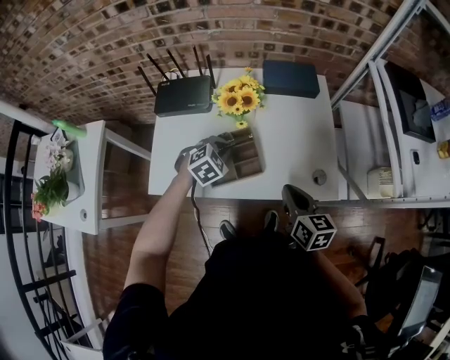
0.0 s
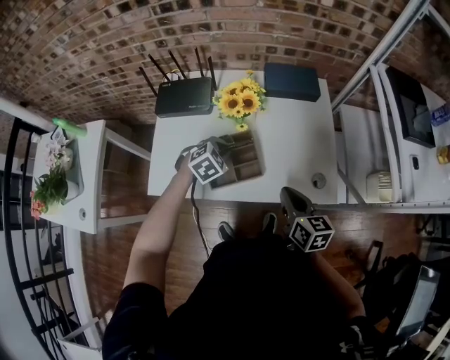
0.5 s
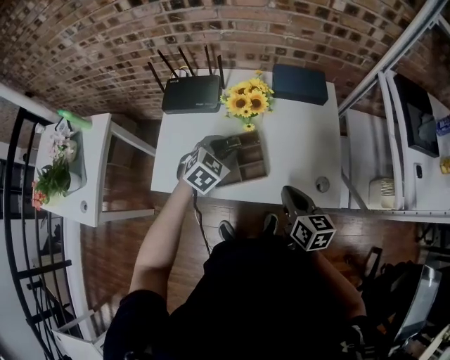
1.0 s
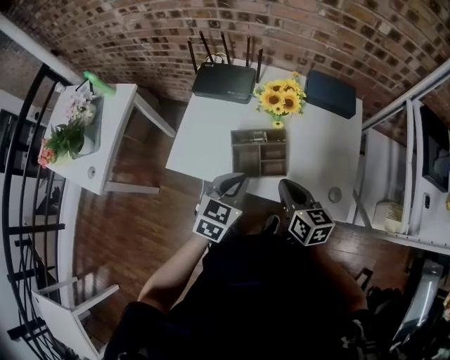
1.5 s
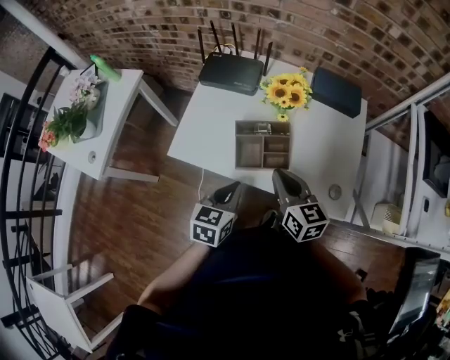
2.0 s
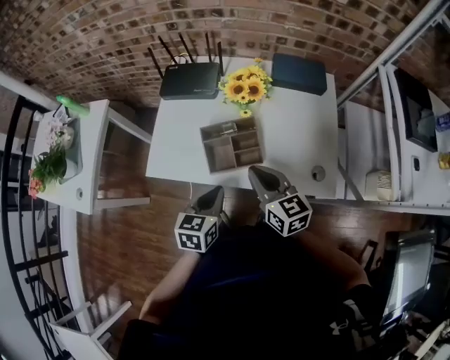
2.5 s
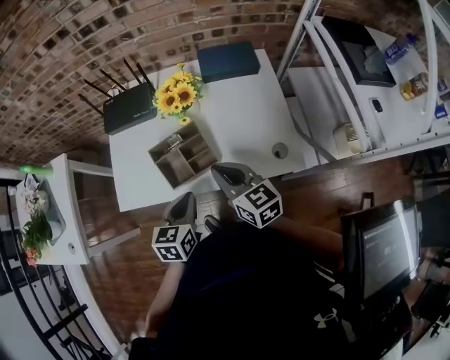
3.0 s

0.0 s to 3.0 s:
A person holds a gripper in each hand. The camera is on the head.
0.0 to 1.5 s: The right gripper shifts some 10 cm to the left, while the left gripper is displaced backward and upward by approximately 15 cm, swivels some 50 degrees, and opens, then closes once more.
1.5 to 3.0 s: The left gripper changes place by approximately 5 cm.

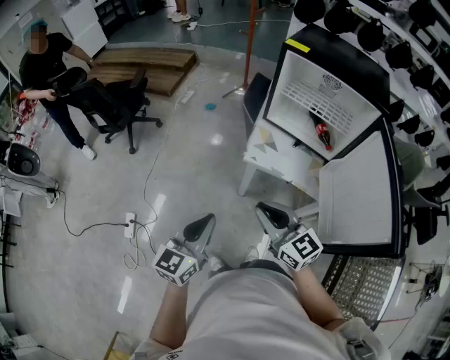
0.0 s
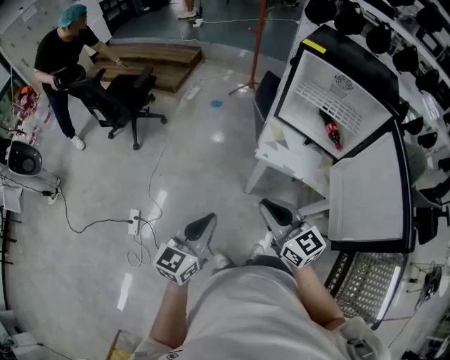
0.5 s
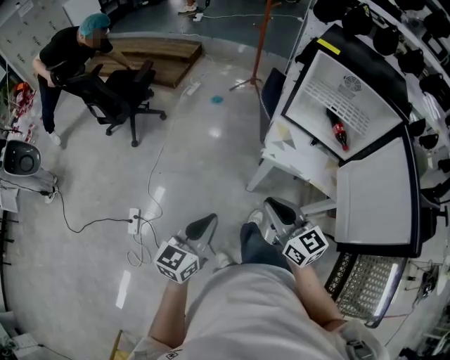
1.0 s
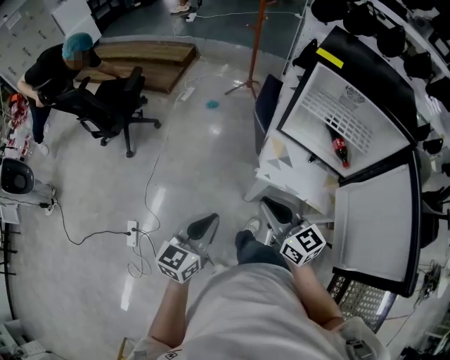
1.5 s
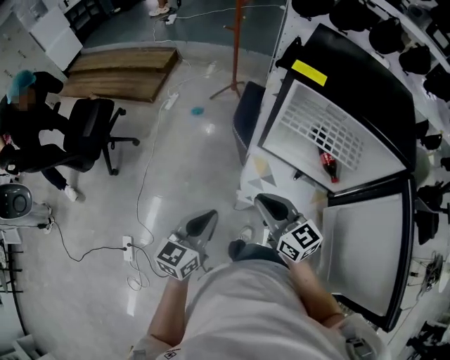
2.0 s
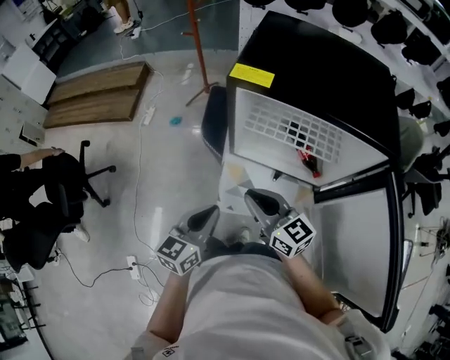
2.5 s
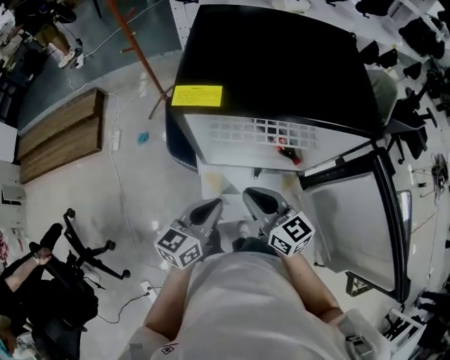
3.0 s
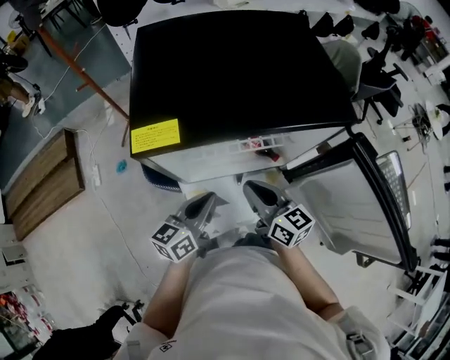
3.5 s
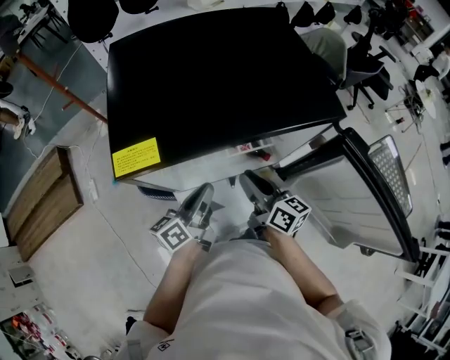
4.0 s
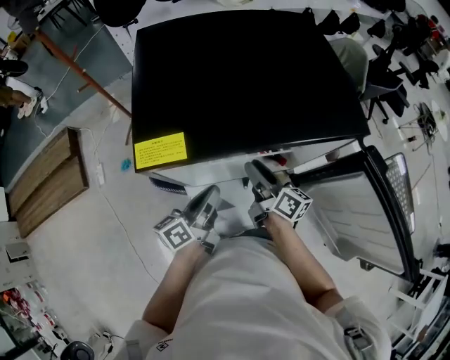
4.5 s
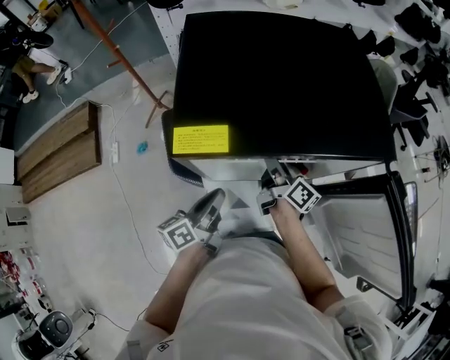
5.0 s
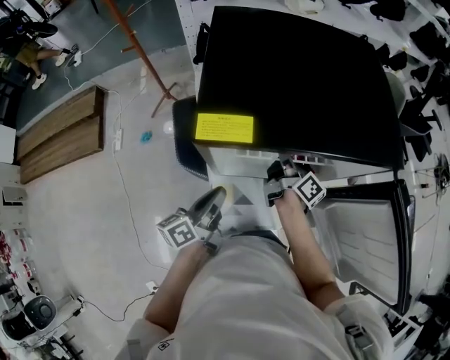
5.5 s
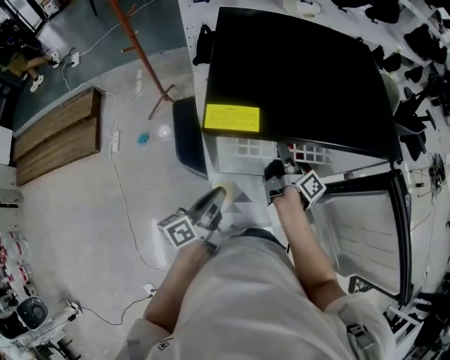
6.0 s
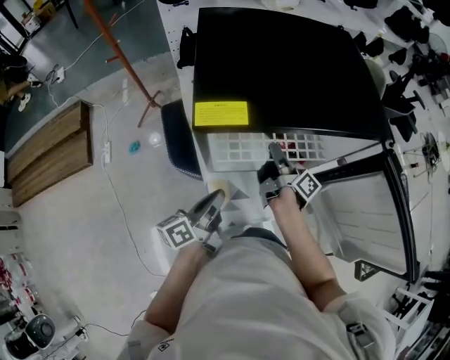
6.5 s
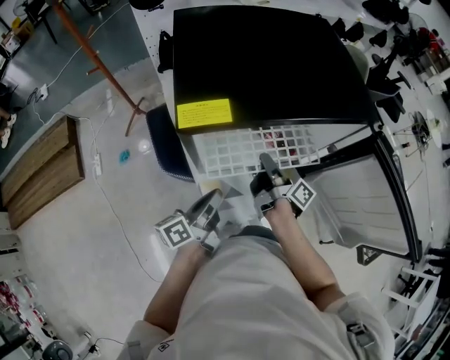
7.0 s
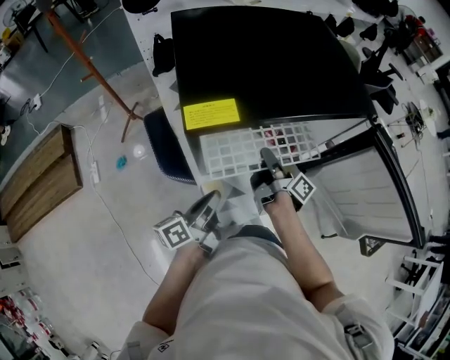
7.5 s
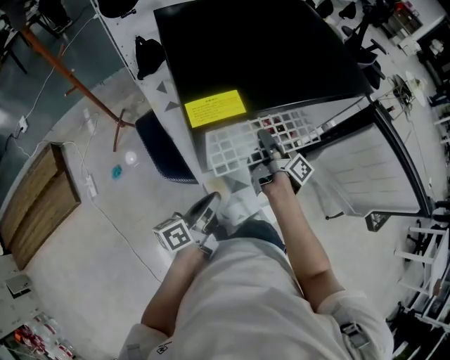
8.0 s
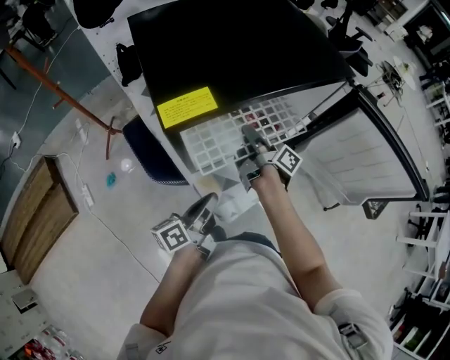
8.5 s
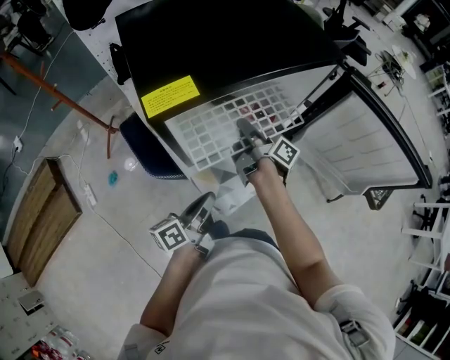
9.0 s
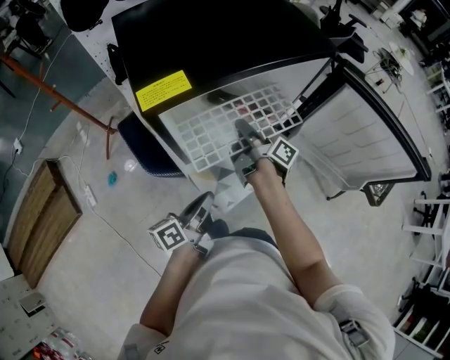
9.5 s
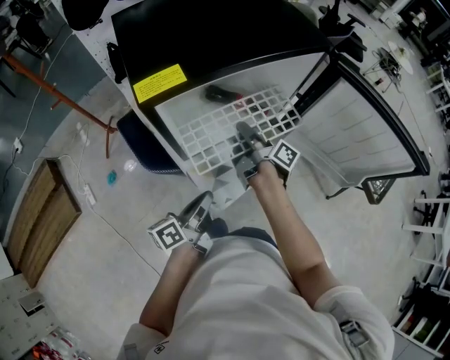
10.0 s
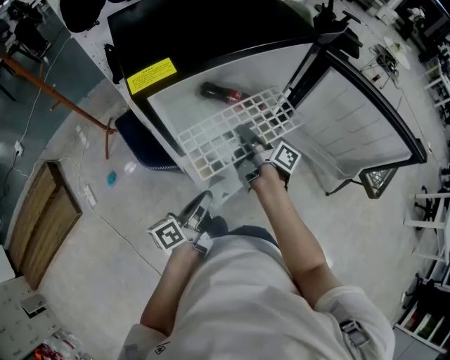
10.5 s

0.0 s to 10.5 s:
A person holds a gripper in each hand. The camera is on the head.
0.0 to 2.0 s: Both grippers move forward, about 25 cm.
2.0 to 4.0 s: The right gripper moves approximately 30 cm, and swivels some 60 degrees. The left gripper moves roughly 35 cm, and turns by about 50 degrees.
4.0 to 6.5 s: The left gripper heads to the left and backward, covering about 10 cm, while the right gripper moves forward, roughly 5 cm, rotates around the line of its fingers by approximately 40 degrees, clockwise from behind, and opens and closes again.
6.5 to 8.5 s: The left gripper turns by roughly 20 degrees.
8.5 to 10.5 s: The grippers both shift backward by about 5 cm.

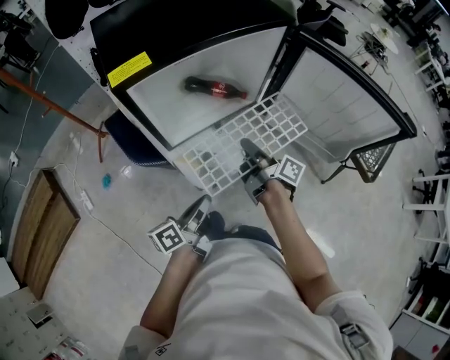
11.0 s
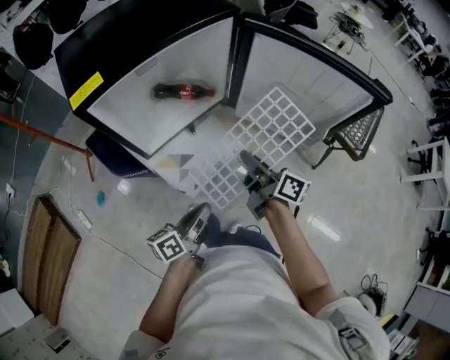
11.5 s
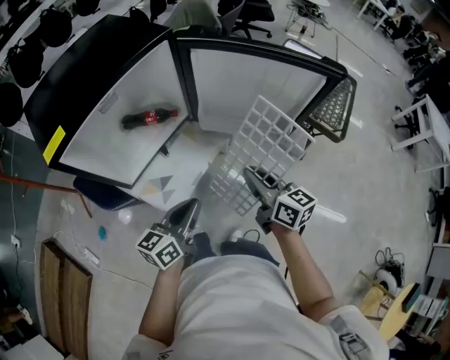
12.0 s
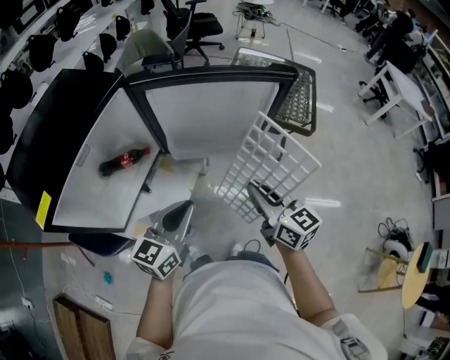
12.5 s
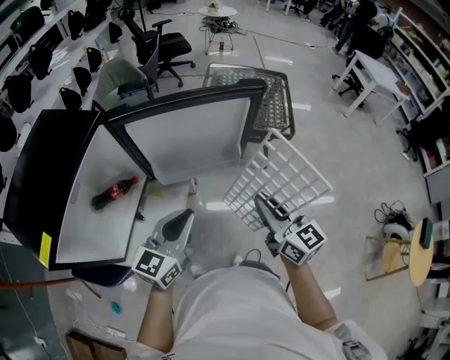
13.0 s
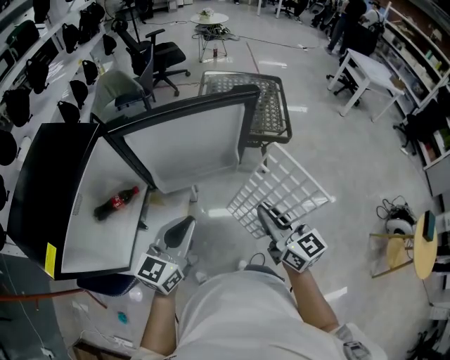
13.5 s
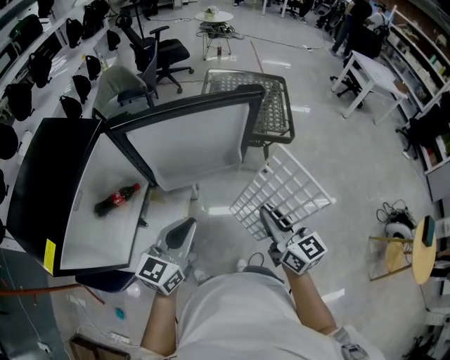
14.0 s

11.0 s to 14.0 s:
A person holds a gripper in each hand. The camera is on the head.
11.0 to 12.5 s: The right gripper ends up about 30 cm from where it was, and rolls counterclockwise, seen from behind, by some 60 degrees. The left gripper moves roughly 25 cm, and twists about 60 degrees clockwise, seen from behind.
12.5 to 14.0 s: The right gripper heads to the right, covering some 5 cm.

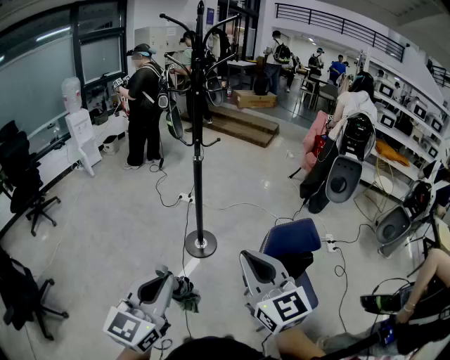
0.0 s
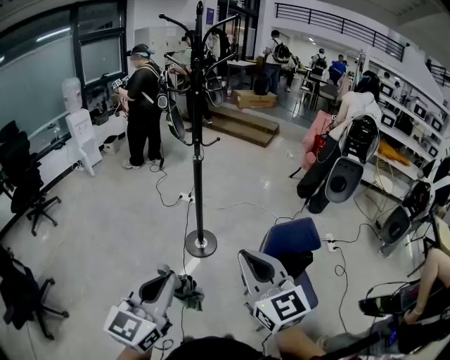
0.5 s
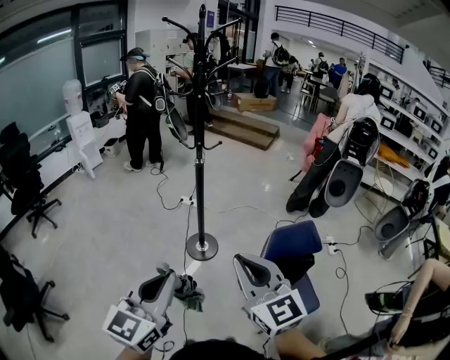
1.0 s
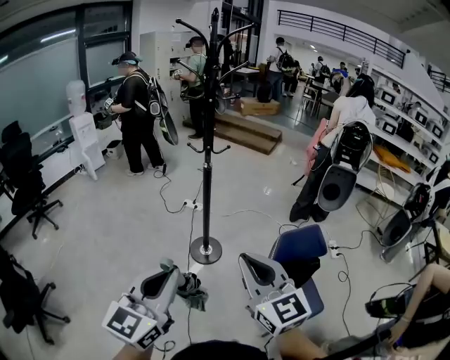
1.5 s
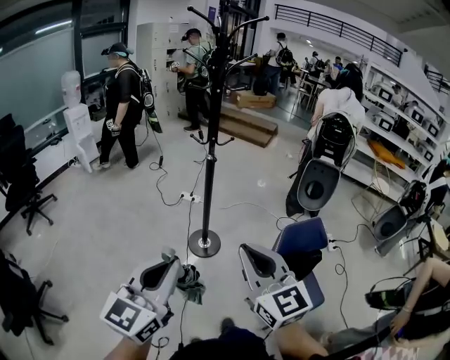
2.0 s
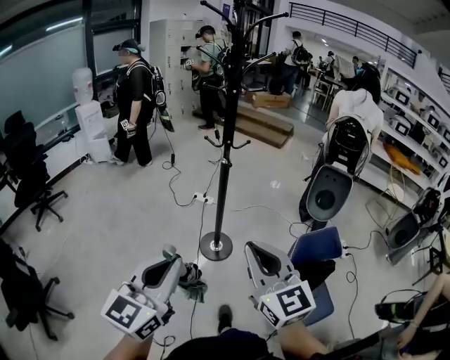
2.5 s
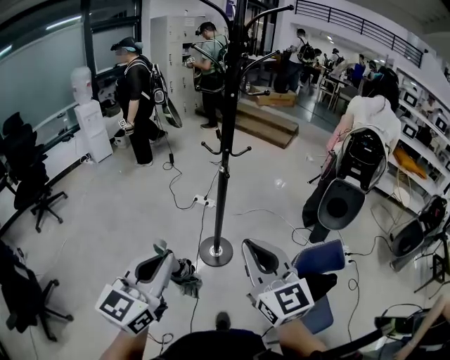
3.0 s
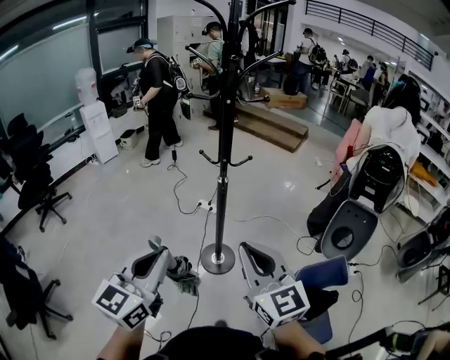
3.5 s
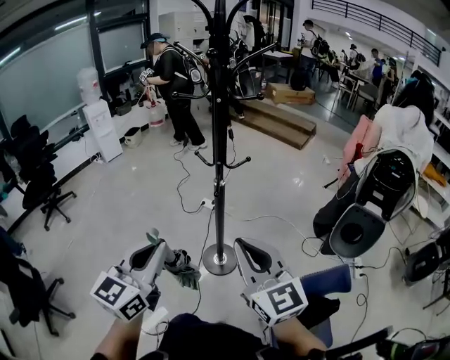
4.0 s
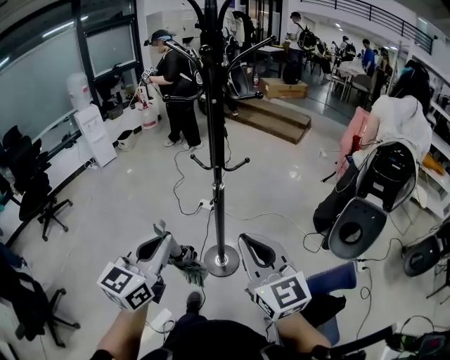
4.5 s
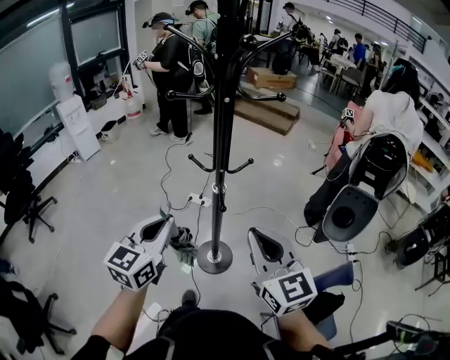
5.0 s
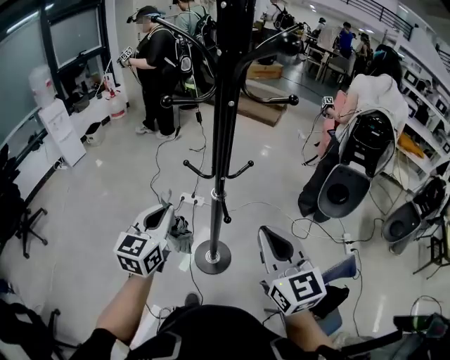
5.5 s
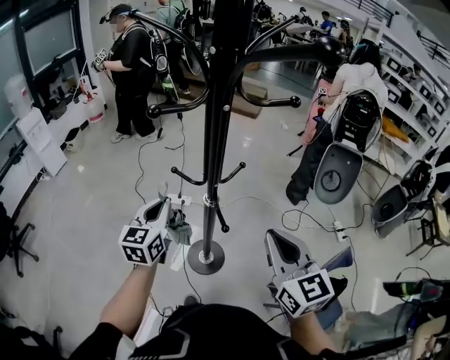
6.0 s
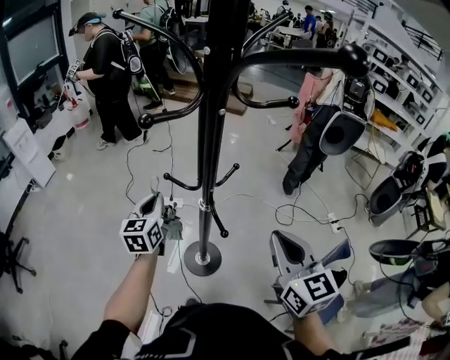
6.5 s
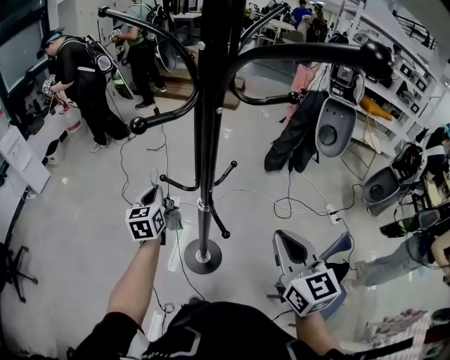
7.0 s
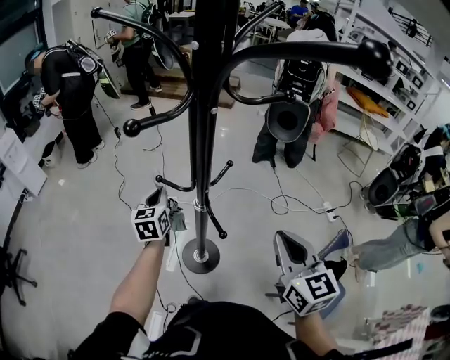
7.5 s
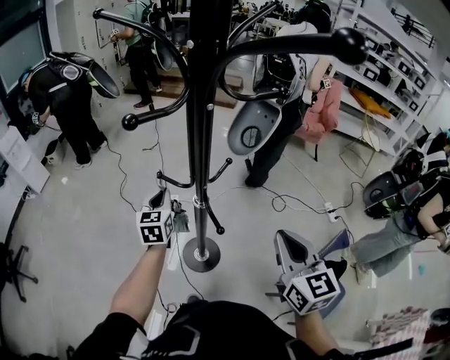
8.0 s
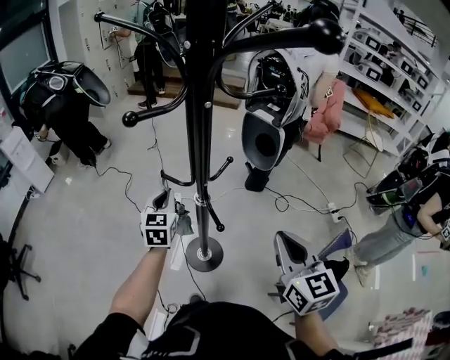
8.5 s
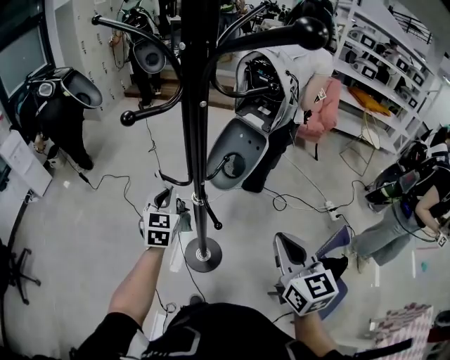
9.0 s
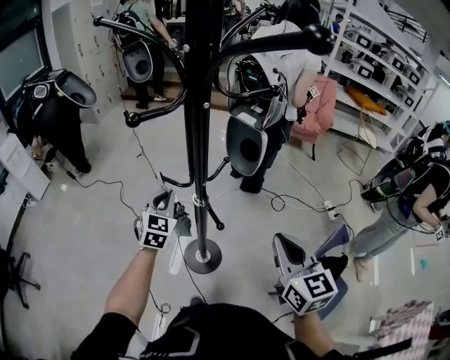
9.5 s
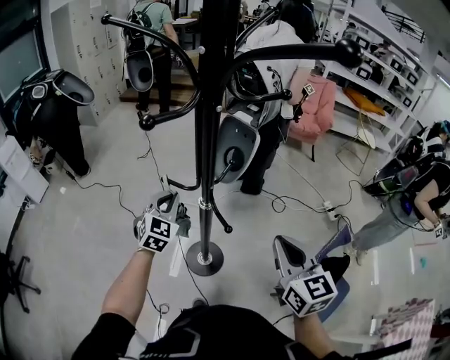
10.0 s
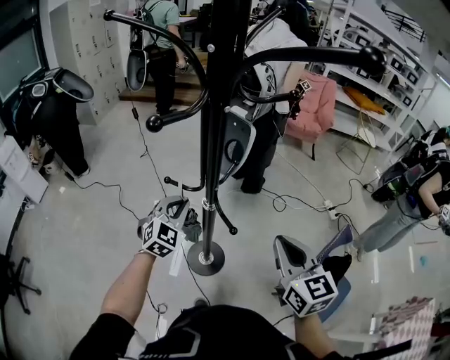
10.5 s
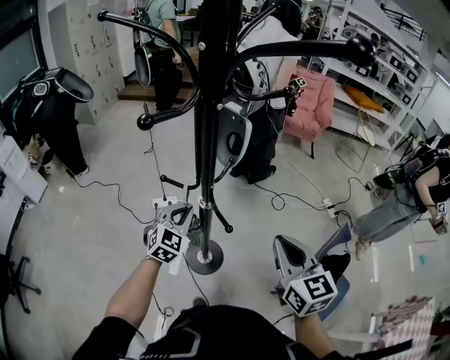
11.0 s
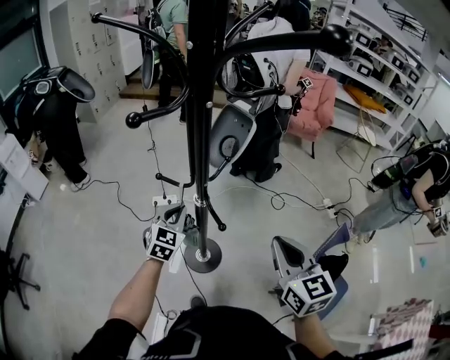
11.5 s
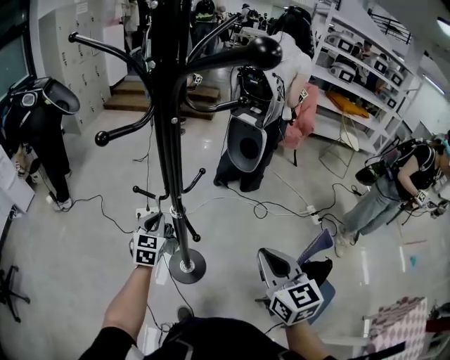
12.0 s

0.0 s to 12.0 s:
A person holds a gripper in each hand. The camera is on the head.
0.0 to 2.0 s: Both grippers move to the left, approximately 10 cm.
2.0 to 4.0 s: The grippers both shift forward by about 30 cm.
4.0 to 6.0 s: The left gripper is displaced forward by approximately 40 cm. The right gripper moves forward, roughly 20 cm, and rotates about 30 degrees.
6.0 to 8.0 s: The left gripper heads forward and downward, covering approximately 10 cm.
8.0 to 10.0 s: The left gripper turns by some 40 degrees.
10.0 to 12.0 s: The left gripper travels downward by approximately 5 cm; the right gripper heads to the right, covering some 5 cm.
